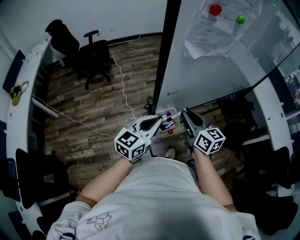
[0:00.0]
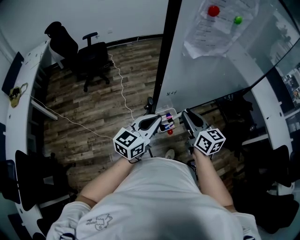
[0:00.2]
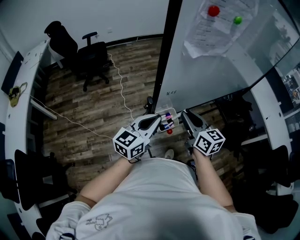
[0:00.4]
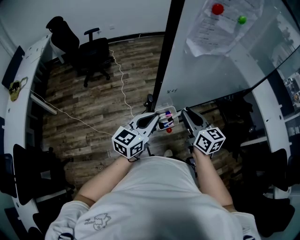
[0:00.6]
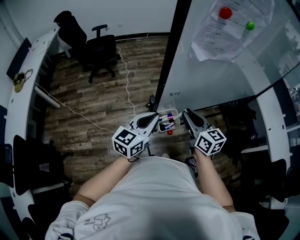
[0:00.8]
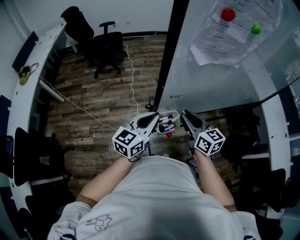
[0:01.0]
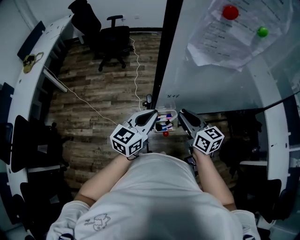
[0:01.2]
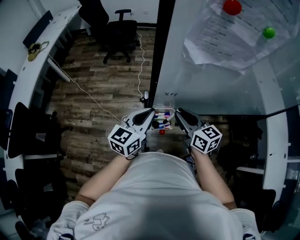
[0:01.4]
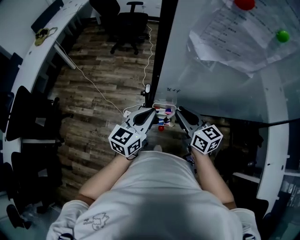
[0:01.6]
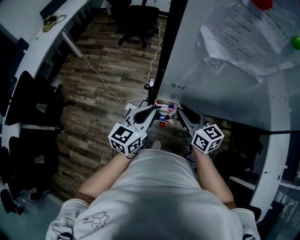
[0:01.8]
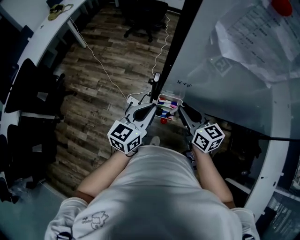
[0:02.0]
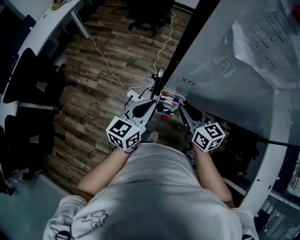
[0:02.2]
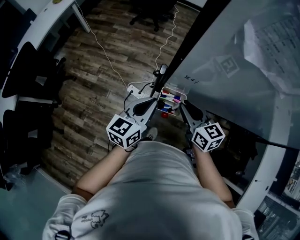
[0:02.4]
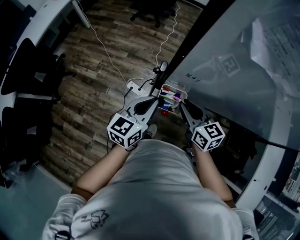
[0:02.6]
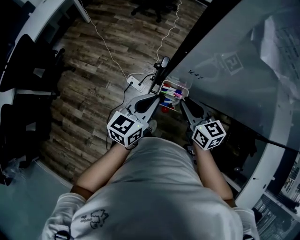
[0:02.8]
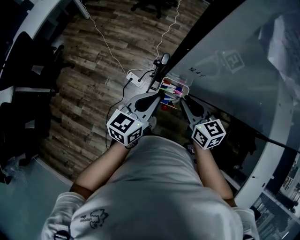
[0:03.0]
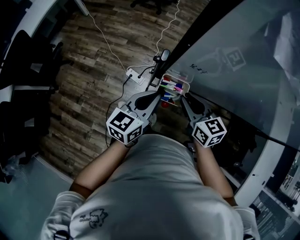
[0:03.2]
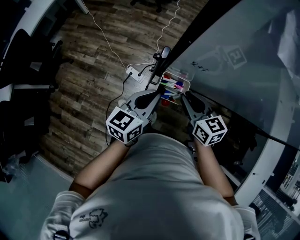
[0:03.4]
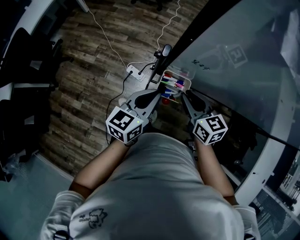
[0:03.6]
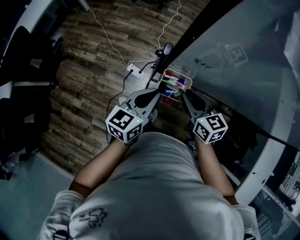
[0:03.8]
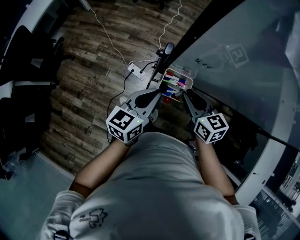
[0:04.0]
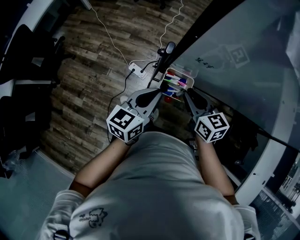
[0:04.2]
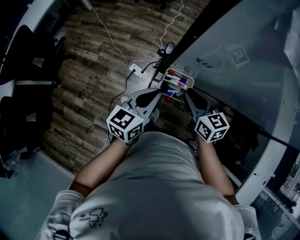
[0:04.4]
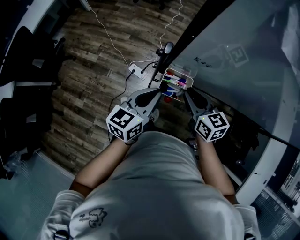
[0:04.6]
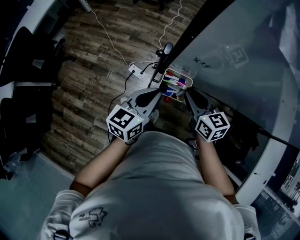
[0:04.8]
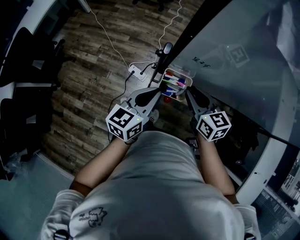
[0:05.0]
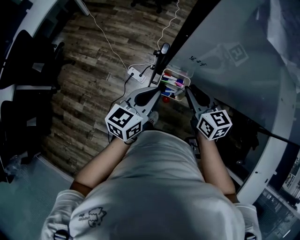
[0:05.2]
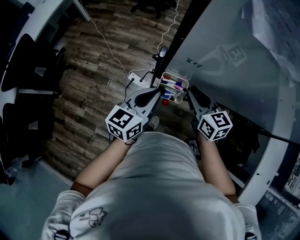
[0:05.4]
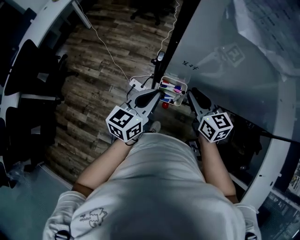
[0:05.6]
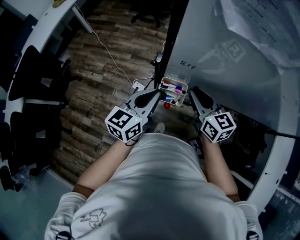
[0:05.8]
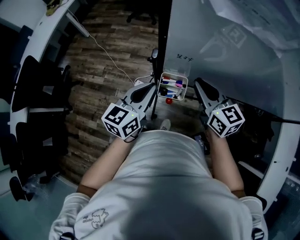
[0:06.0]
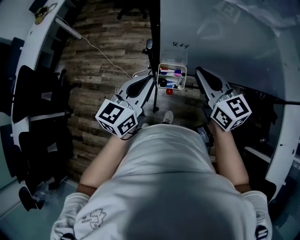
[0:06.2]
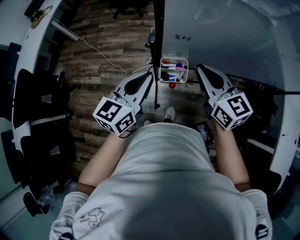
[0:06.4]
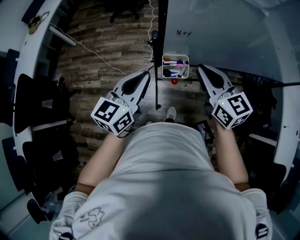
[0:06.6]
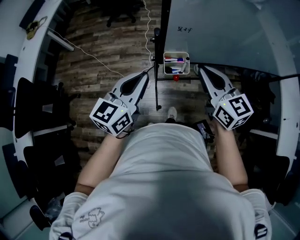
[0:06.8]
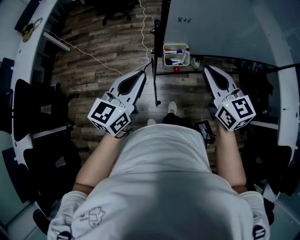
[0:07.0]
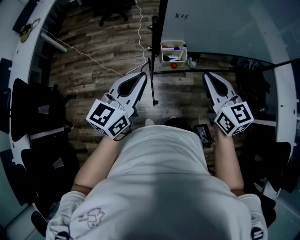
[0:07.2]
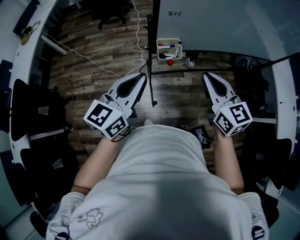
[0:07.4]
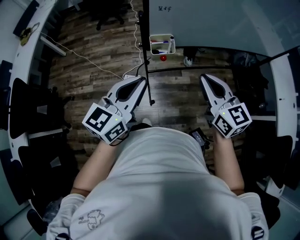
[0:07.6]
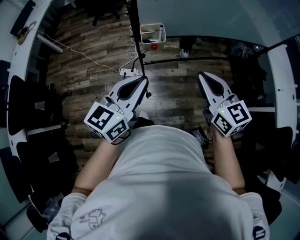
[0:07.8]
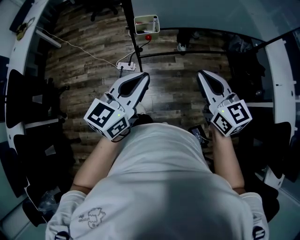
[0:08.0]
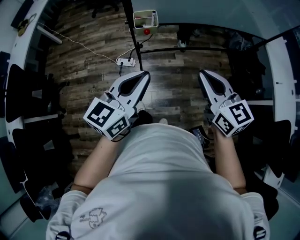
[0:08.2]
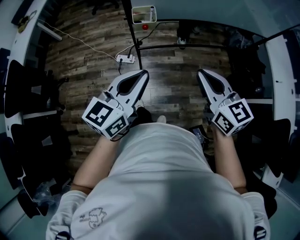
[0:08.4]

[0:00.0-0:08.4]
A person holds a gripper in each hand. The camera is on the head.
0:00.0 to 0:01.4: The left gripper rotates roughly 30 degrees, while the right gripper ends up approximately 5 cm from where it was, and turns by approximately 30 degrees.
0:01.4 to 0:02.8: The grippers both shift downward by about 5 cm. The left gripper turns by approximately 20 degrees.
0:02.8 to 0:04.2: There are only small adjustments of the grippers.
0:04.2 to 0:05.6: The right gripper travels upward by about 5 cm.
0:05.6 to 0:07.0: The left gripper goes approximately 15 cm to the left, backward and upward. Meanwhile the right gripper heads backward and upward, covering approximately 20 cm, and rotates about 20 degrees.
0:07.0 to 0:08.4: Both grippers travel together backward and to the right, some 30 cm.

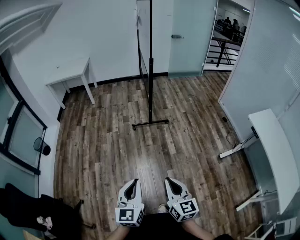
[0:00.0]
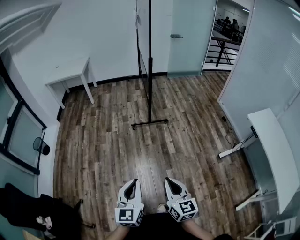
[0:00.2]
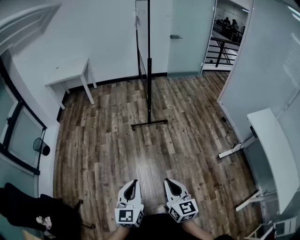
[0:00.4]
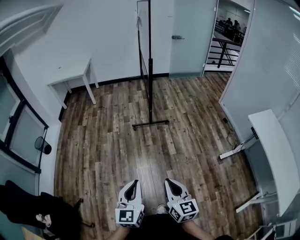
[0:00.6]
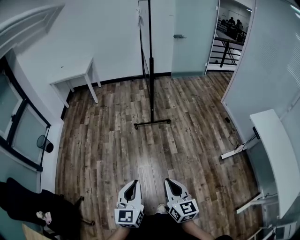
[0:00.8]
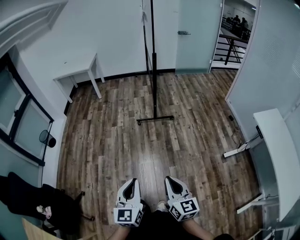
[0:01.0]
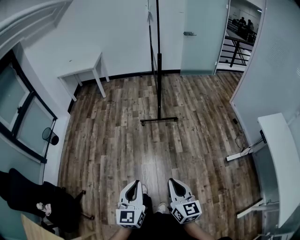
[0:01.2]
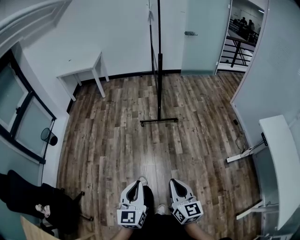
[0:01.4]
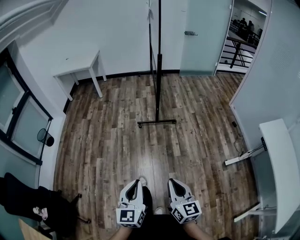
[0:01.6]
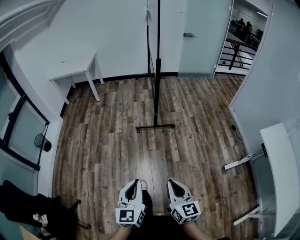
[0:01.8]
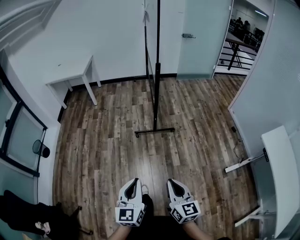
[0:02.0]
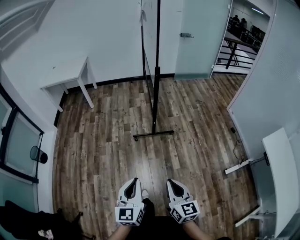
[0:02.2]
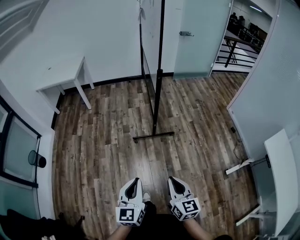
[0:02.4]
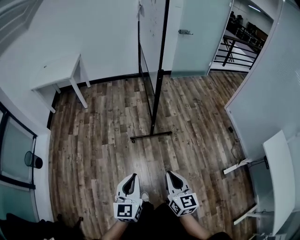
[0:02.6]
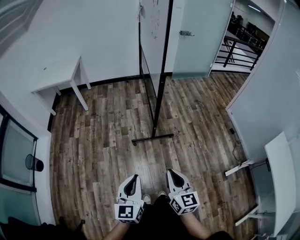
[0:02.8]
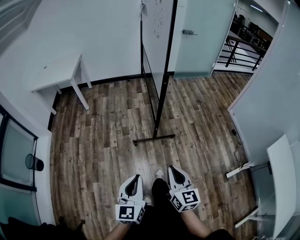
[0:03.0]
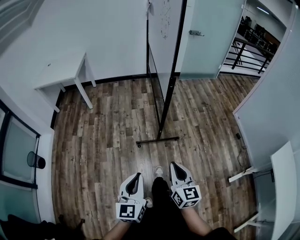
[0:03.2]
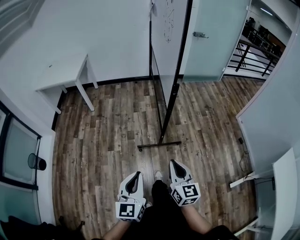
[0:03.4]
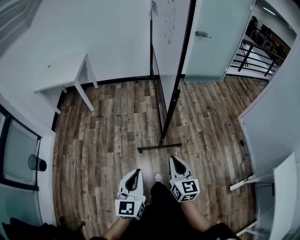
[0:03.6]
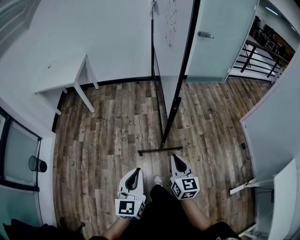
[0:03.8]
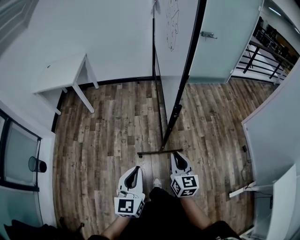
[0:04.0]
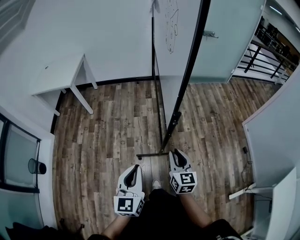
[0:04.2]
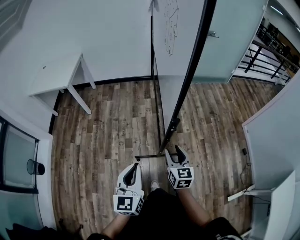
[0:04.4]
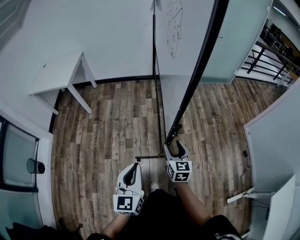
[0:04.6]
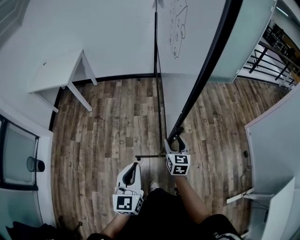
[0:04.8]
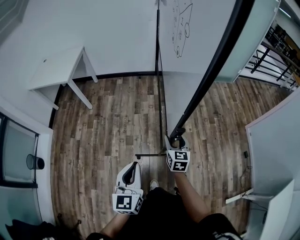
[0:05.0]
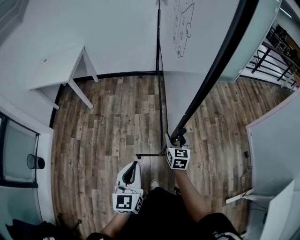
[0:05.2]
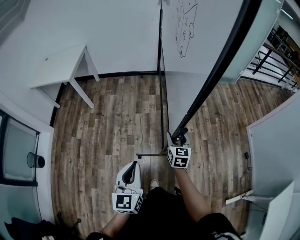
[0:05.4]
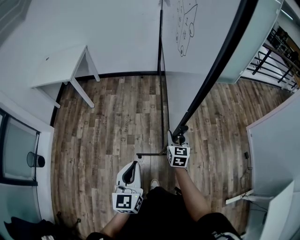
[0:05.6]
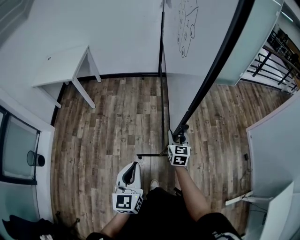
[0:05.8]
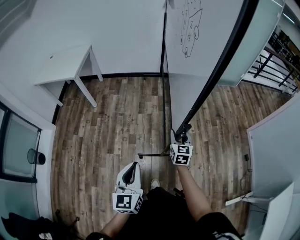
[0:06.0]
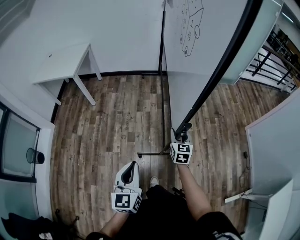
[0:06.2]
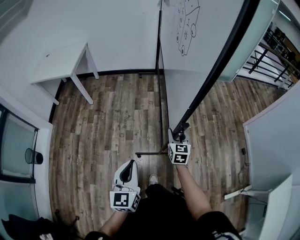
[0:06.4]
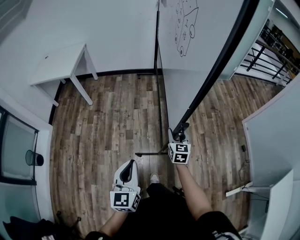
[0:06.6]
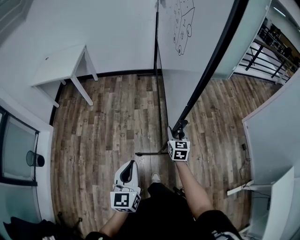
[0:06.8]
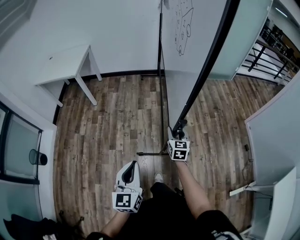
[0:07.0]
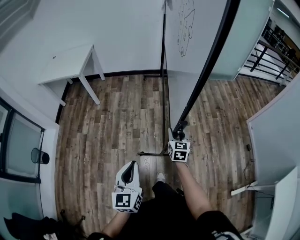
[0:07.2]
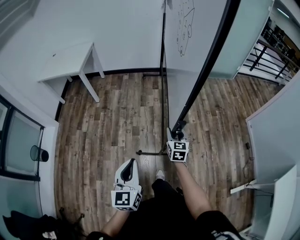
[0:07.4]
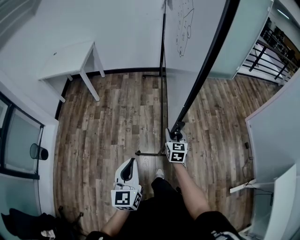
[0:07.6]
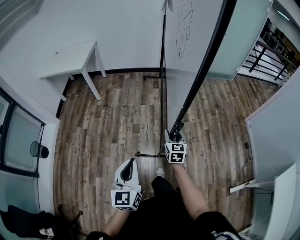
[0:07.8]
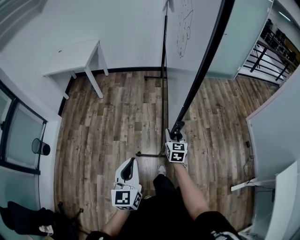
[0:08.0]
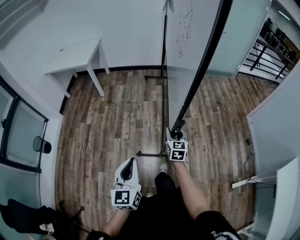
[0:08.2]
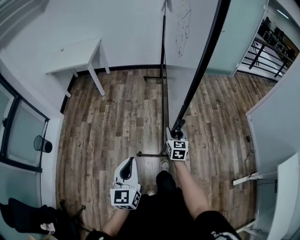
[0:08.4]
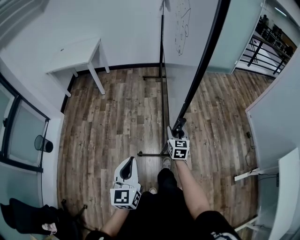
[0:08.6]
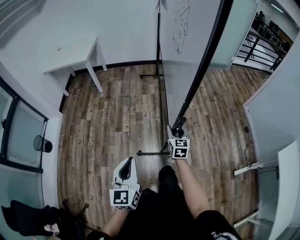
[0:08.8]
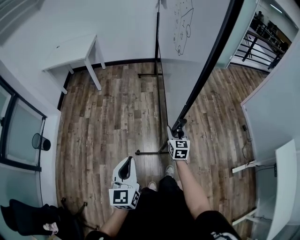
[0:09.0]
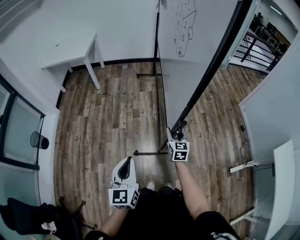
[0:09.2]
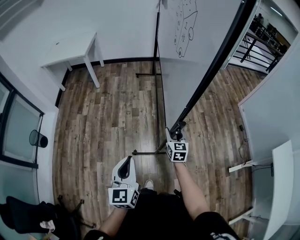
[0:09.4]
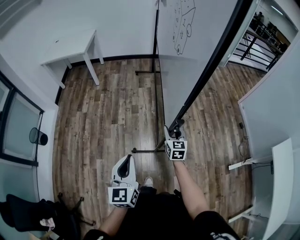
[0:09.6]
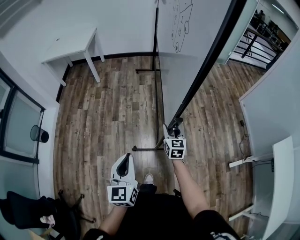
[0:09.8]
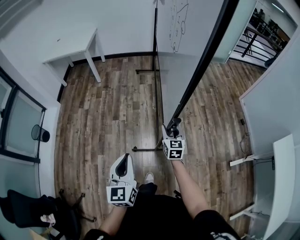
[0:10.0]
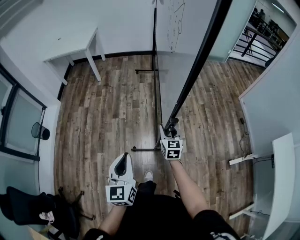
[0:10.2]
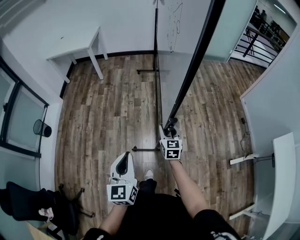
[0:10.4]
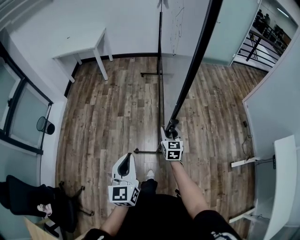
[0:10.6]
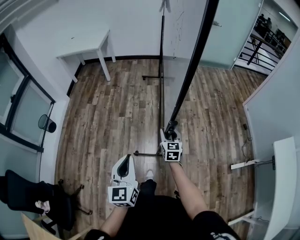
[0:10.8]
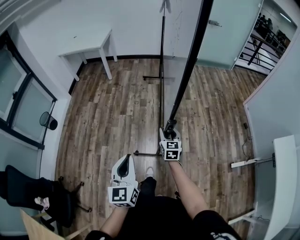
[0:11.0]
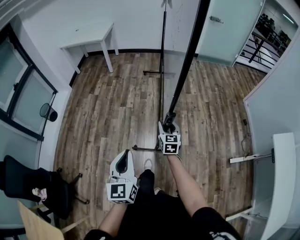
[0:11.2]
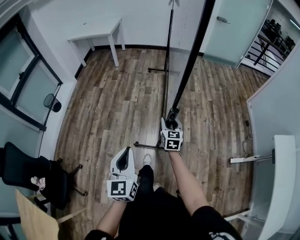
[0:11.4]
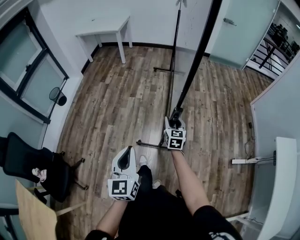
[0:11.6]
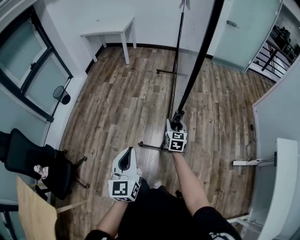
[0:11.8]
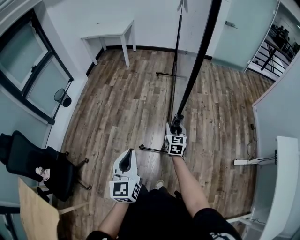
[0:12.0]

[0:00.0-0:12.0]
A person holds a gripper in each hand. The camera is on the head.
0:00.0 to 0:01.6: The left gripper travels forward by approximately 5 cm. The right gripper shifts approximately 10 cm forward and to the right.
0:01.6 to 0:03.0: The pair of grippers is taken forward, some 40 cm.
0:03.0 to 0:04.4: Both grippers move forward, roughly 40 cm. The right gripper opens.
0:04.4 to 0:06.0: The right gripper shifts about 15 cm forward and downward.
0:06.0 to 0:07.6: The two grippers go some 15 cm backward.
0:07.6 to 0:09.0: The two grippers go approximately 20 cm backward.
0:09.0 to 0:10.4: The grippers both shift backward by approximately 15 cm.
0:10.4 to 0:12.0: The two grippers go approximately 25 cm backward.

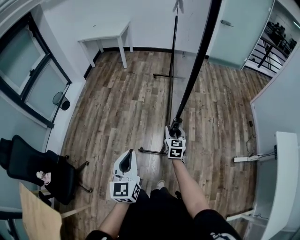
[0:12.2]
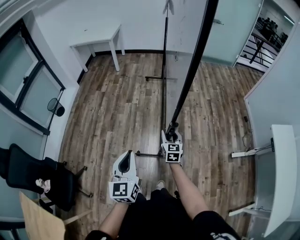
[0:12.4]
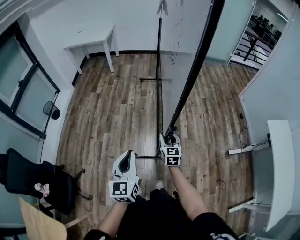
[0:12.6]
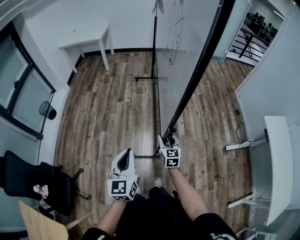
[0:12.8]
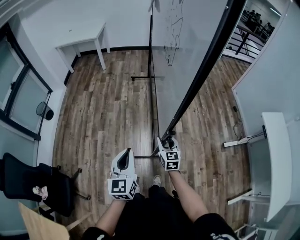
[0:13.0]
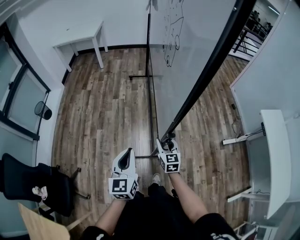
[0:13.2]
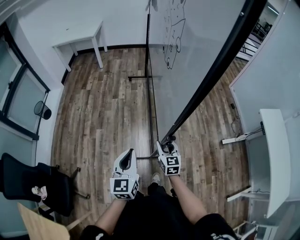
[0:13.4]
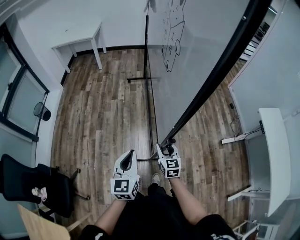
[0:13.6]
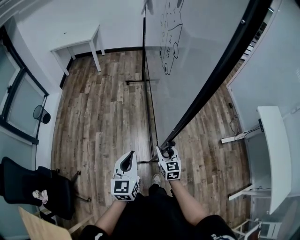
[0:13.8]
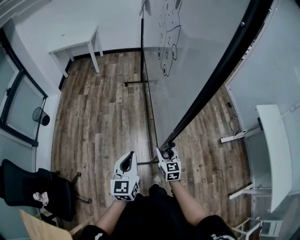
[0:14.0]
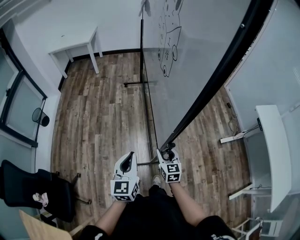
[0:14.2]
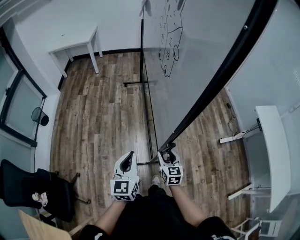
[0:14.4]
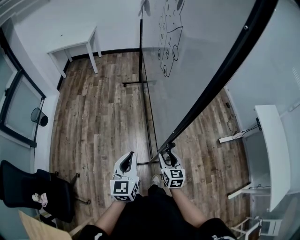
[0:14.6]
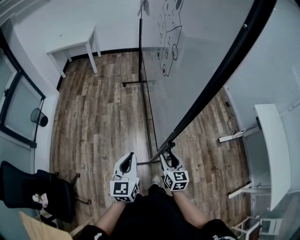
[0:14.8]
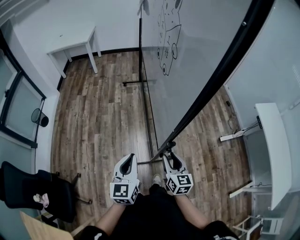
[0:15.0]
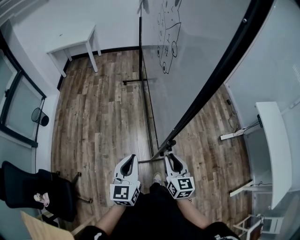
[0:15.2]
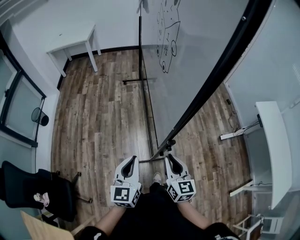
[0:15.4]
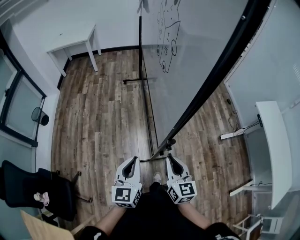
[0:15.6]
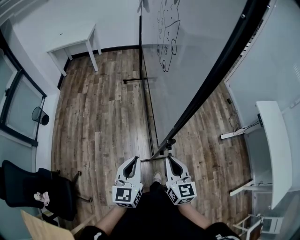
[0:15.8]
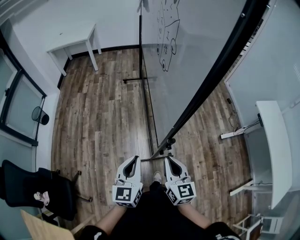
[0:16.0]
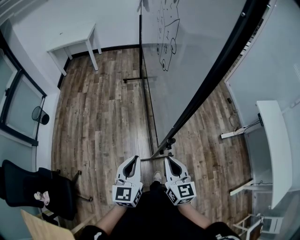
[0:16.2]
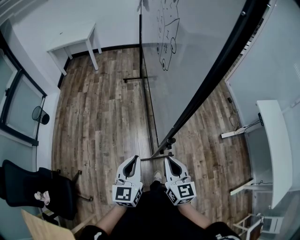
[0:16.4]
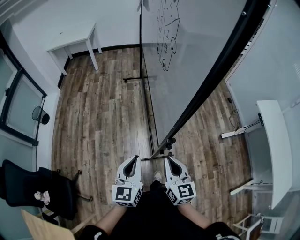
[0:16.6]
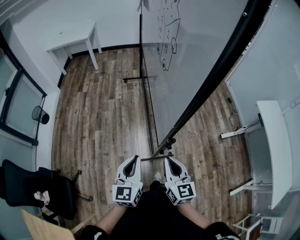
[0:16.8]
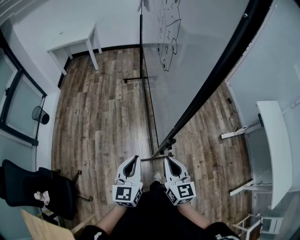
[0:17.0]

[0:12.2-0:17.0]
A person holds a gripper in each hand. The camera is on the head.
0:12.2 to 0:13.8: The right gripper is displaced backward by roughly 15 cm.
0:13.8 to 0:15.4: The right gripper shifts approximately 15 cm upward and backward, and closes.
0:15.4 to 0:17.0: There are only small adjustments of the grippers.
